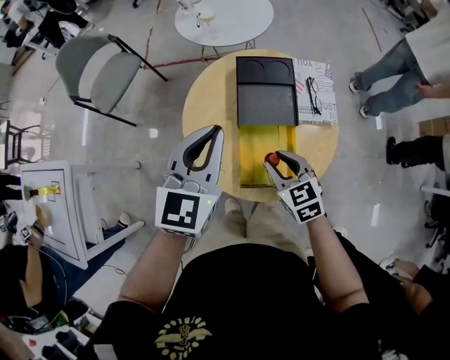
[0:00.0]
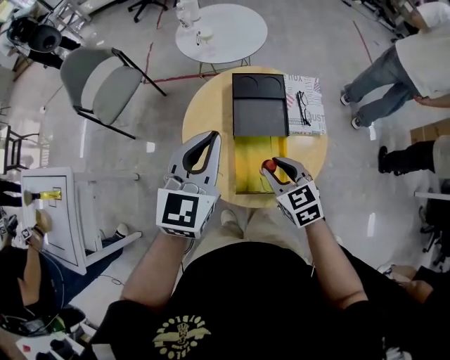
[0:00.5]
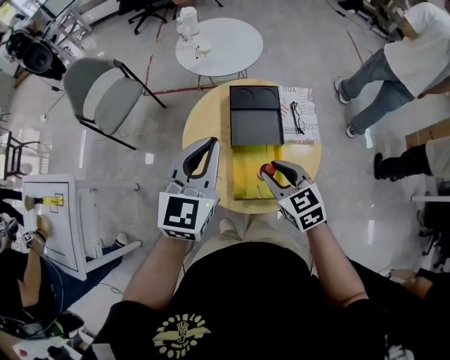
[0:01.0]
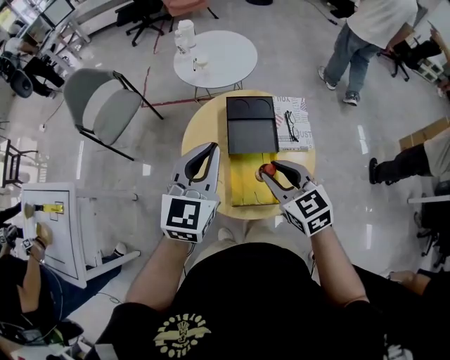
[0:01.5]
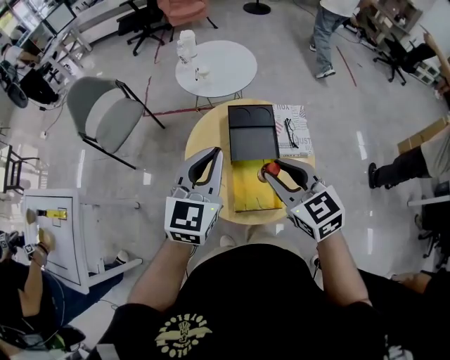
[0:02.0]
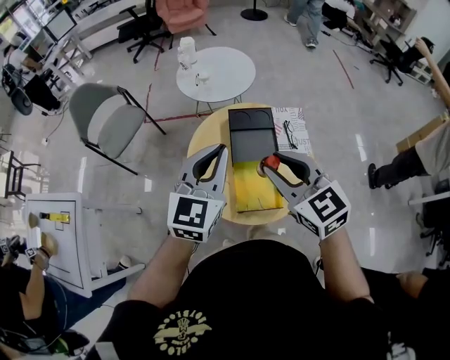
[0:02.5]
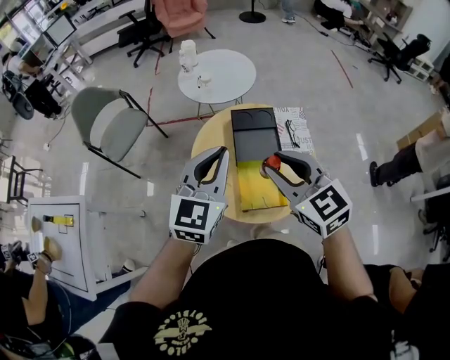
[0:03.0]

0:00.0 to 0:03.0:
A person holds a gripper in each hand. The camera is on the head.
0:00.0 to 0:01.5: The left gripper moves upward, approximately 10 cm. The right gripper moves upward, some 15 cm.
0:01.5 to 0:03.0: The right gripper goes some 10 cm upward.

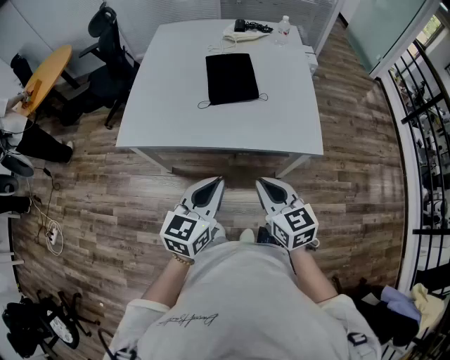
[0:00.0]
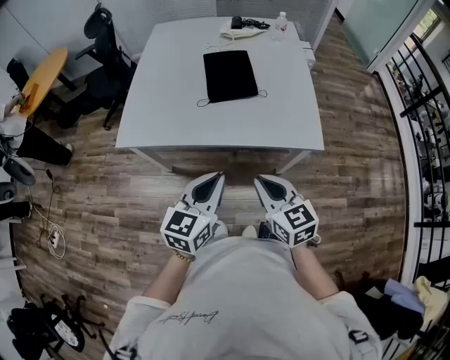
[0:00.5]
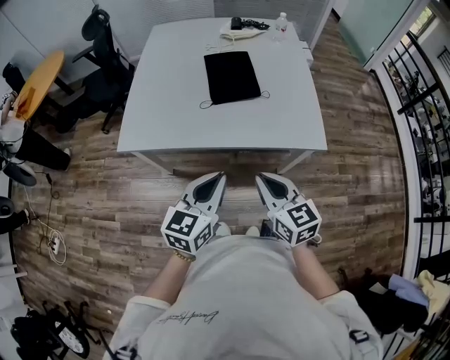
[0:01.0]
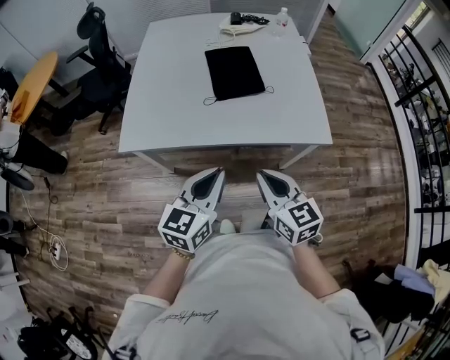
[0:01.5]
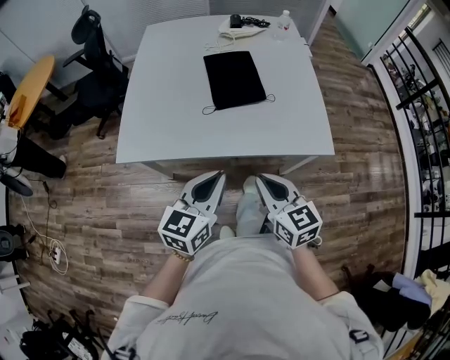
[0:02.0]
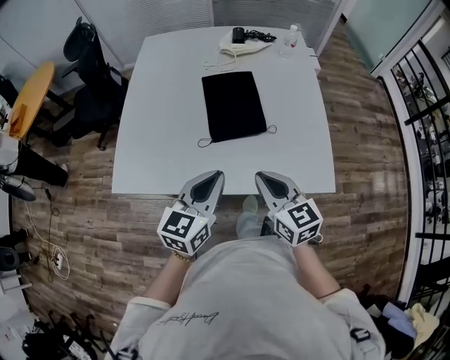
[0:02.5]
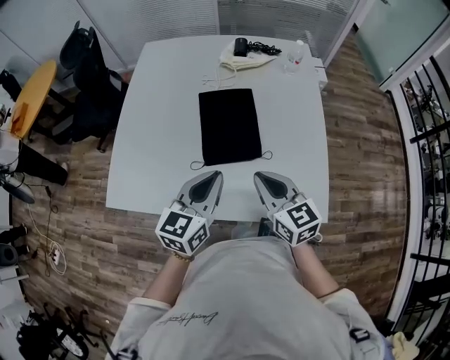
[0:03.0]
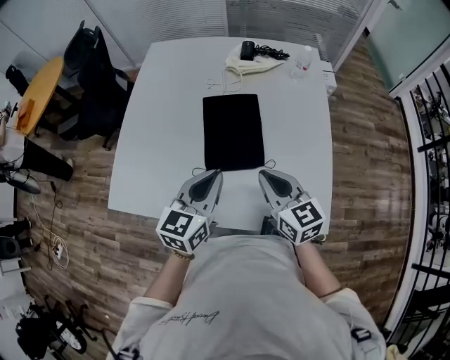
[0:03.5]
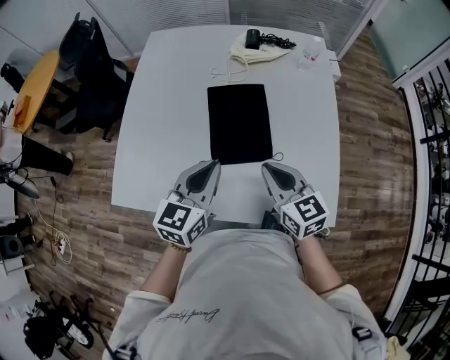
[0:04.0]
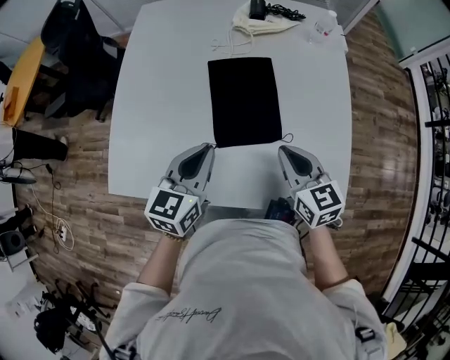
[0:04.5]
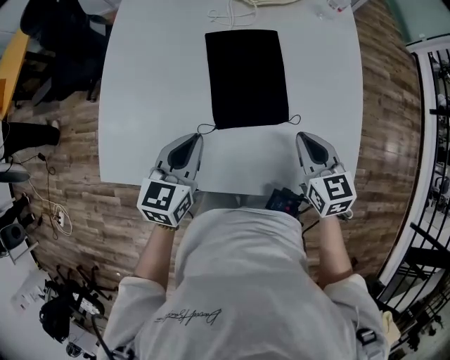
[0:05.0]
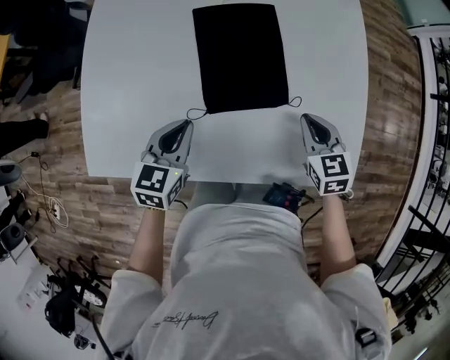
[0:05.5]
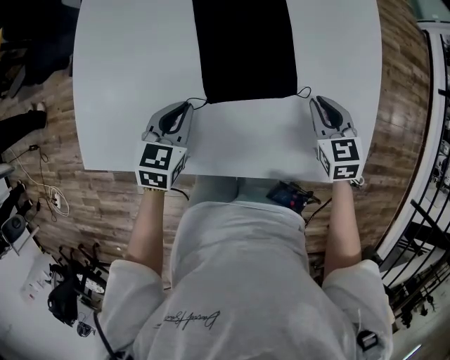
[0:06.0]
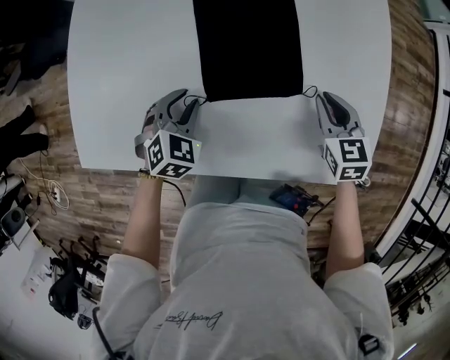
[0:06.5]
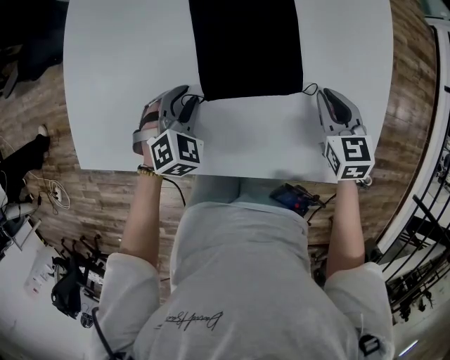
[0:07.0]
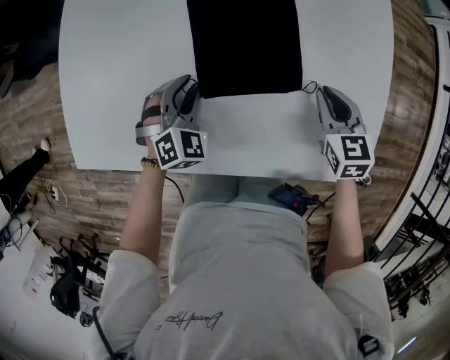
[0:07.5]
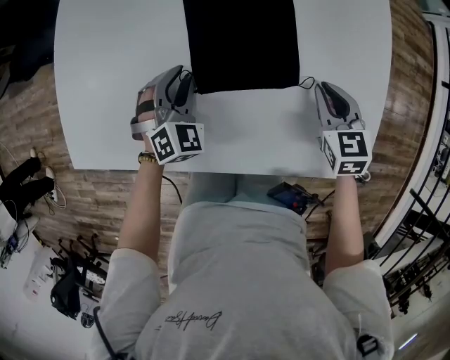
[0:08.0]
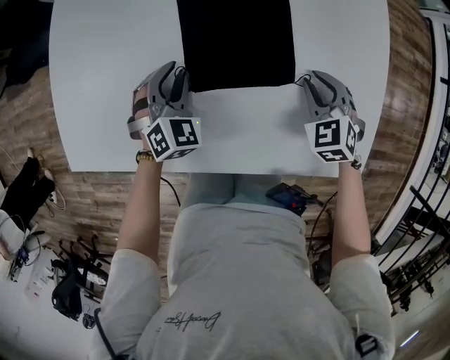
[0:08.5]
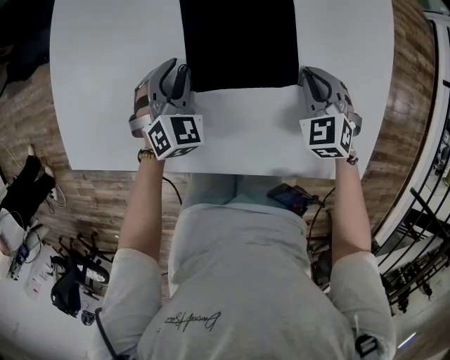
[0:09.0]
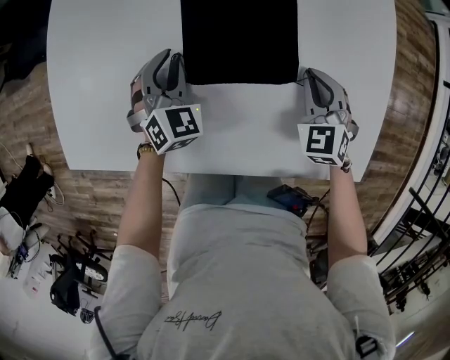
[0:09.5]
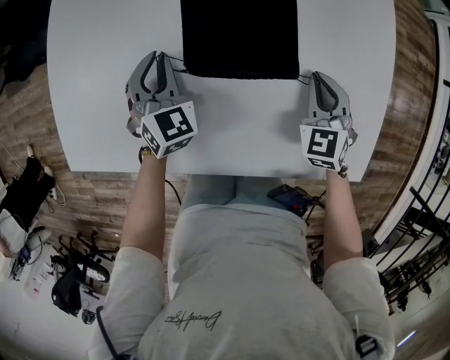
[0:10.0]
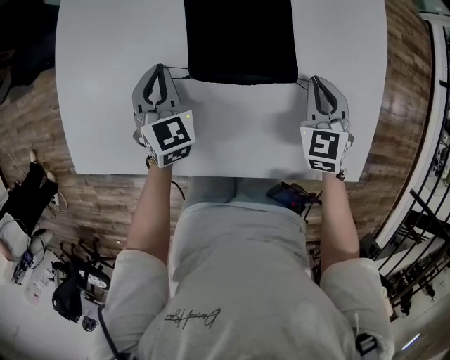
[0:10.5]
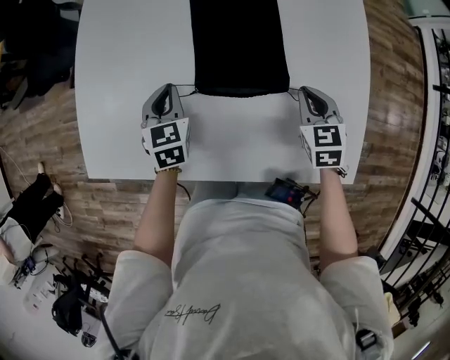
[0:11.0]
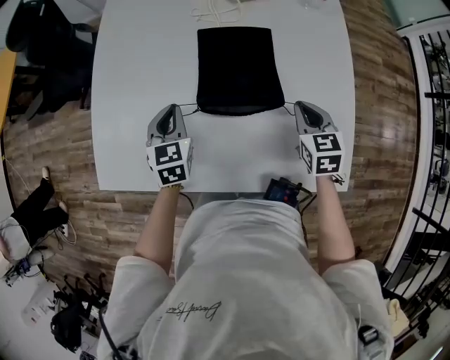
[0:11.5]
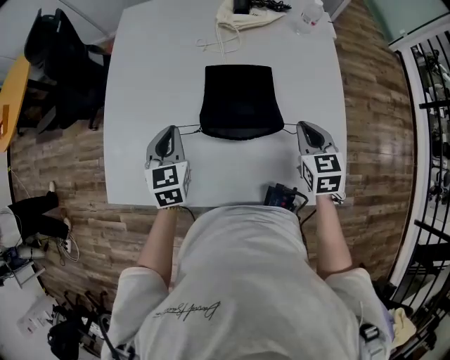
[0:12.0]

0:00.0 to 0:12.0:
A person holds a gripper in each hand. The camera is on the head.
0:00.0 to 0:02.0: The right gripper goes some 10 cm to the left and forward. Meanwhile the left gripper shifts some 10 cm forward and to the left.
0:02.0 to 0:04.0: The grippers both shift forward by some 30 cm.
0:04.0 to 0:06.0: The left gripper heads downward, covering about 20 cm, and turns by roughly 30 degrees; the right gripper moves downward and to the right, roughly 20 cm, and rotates approximately 30 degrees.
0:06.0 to 0:08.0: The left gripper moves approximately 5 cm, rolls clockwise, seen from behind, by approximately 40 degrees, and opens.
0:08.0 to 0:10.0: The right gripper turns by roughly 20 degrees; the left gripper moves approximately 5 cm, and turns by about 30 degrees.
0:10.0 to 0:12.0: The grippers both shift upward by some 15 cm. The right gripper rotates some 30 degrees; the left gripper changes its angle by some 30 degrees.

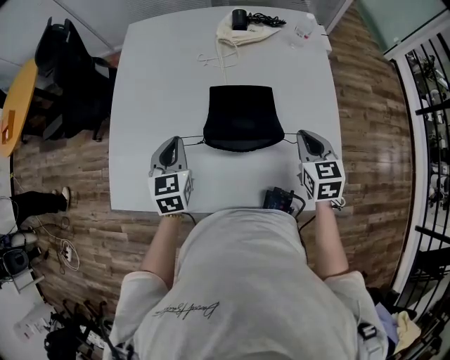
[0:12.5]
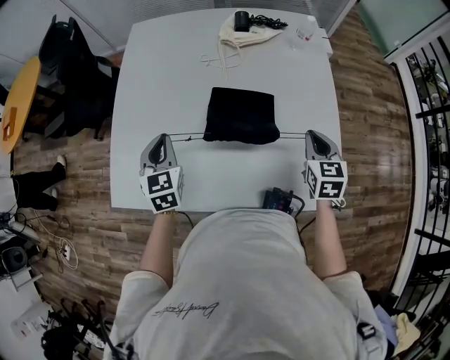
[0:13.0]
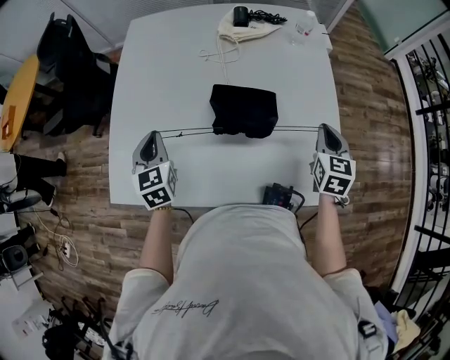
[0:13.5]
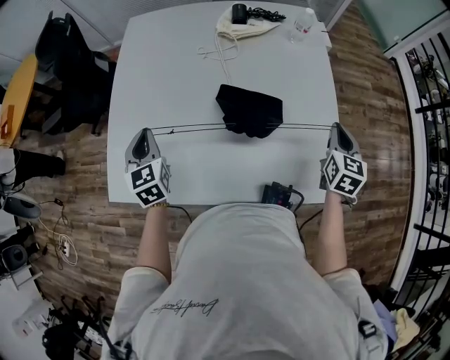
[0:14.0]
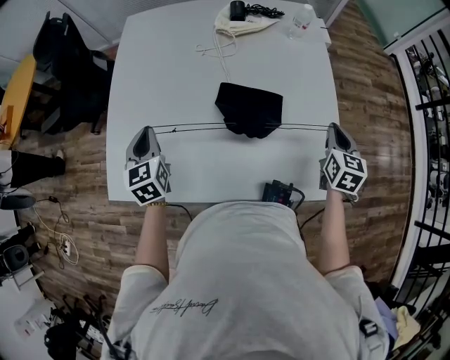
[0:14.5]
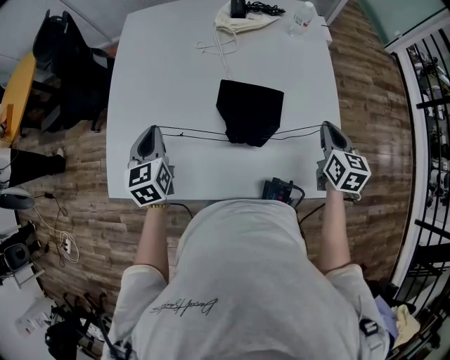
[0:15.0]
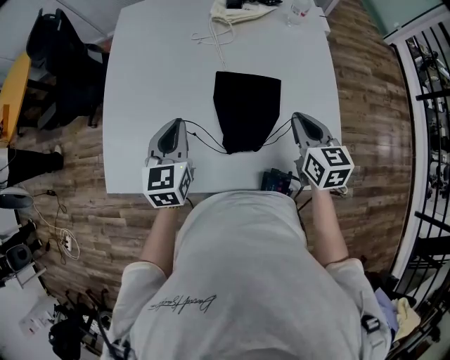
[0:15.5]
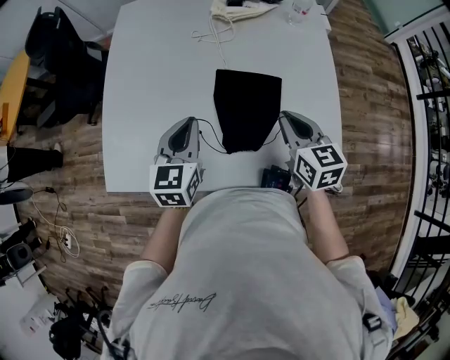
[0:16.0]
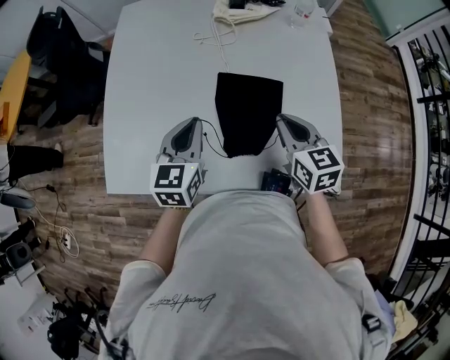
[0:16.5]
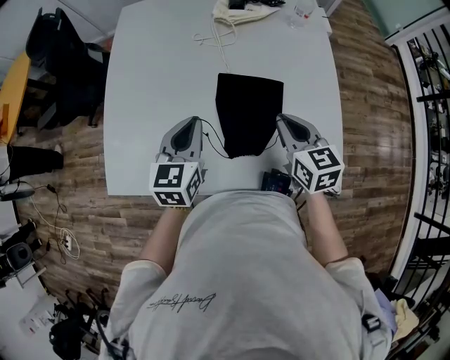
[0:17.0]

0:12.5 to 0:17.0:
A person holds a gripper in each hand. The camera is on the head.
0:12.5 to 0:14.5: The right gripper travels to the right by roughly 10 cm, and changes its angle by roughly 20 degrees. The left gripper shifts about 5 cm to the left.
0:14.5 to 0:17.0: The right gripper is displaced to the left by about 20 cm, and turns by roughly 30 degrees; the left gripper goes some 15 cm to the right, and turns by about 20 degrees.

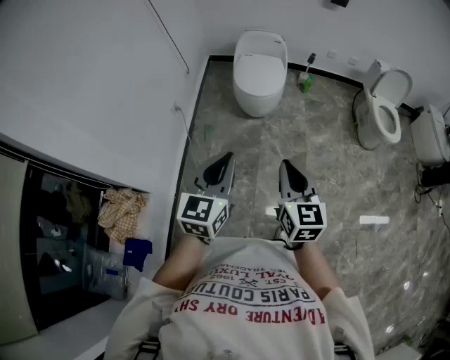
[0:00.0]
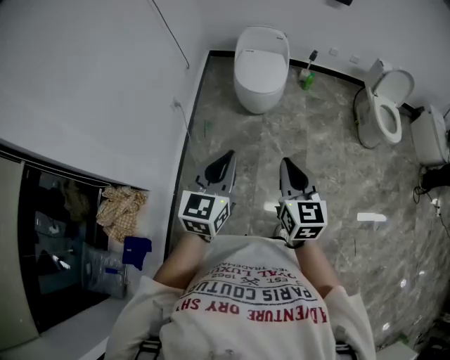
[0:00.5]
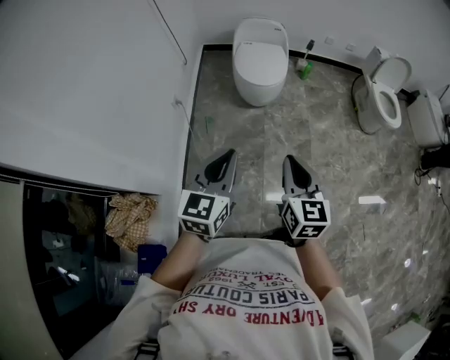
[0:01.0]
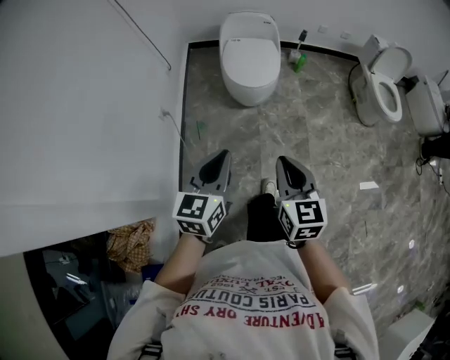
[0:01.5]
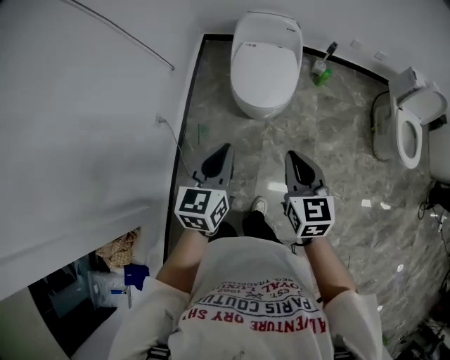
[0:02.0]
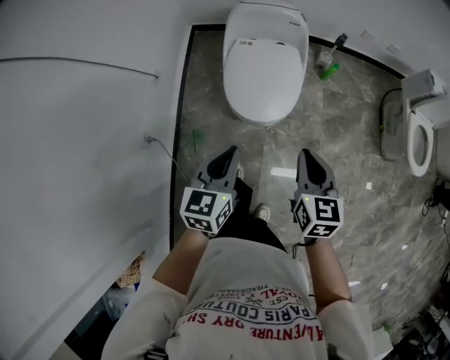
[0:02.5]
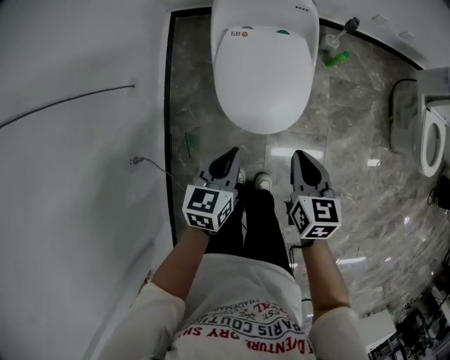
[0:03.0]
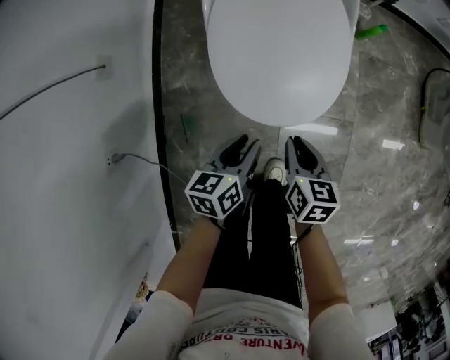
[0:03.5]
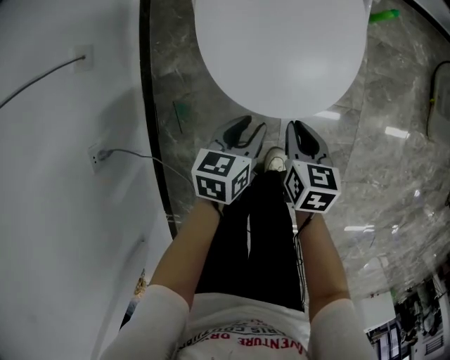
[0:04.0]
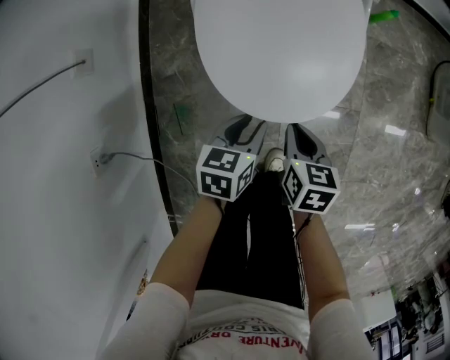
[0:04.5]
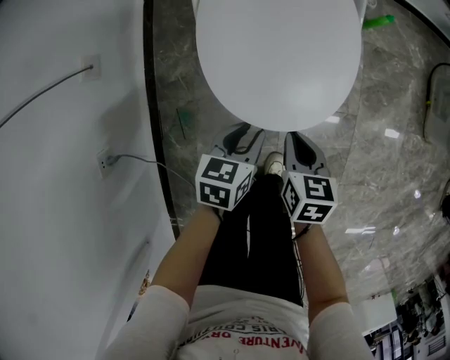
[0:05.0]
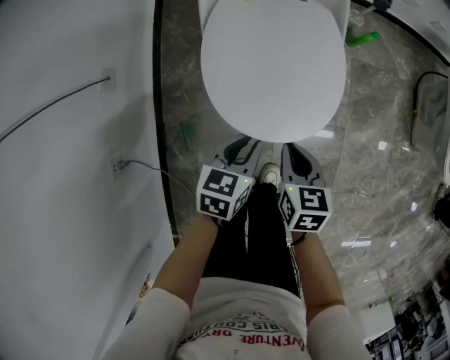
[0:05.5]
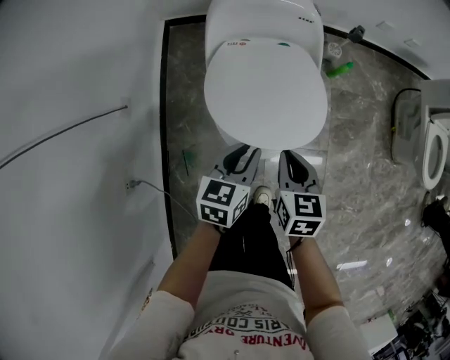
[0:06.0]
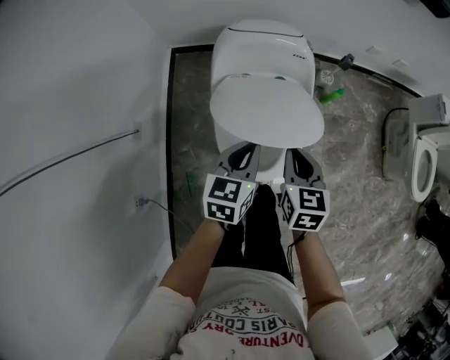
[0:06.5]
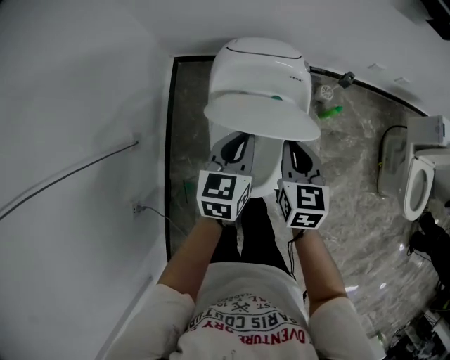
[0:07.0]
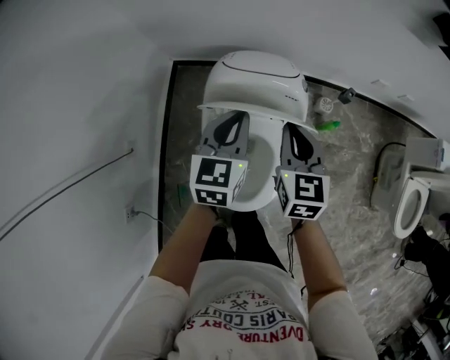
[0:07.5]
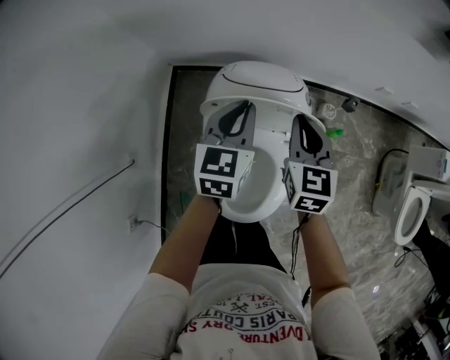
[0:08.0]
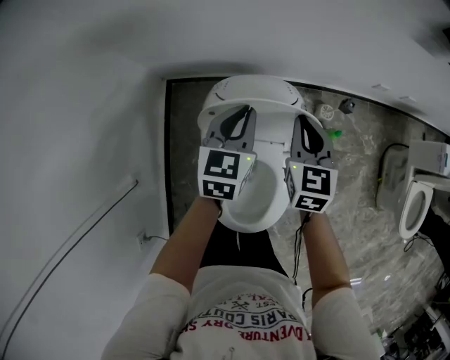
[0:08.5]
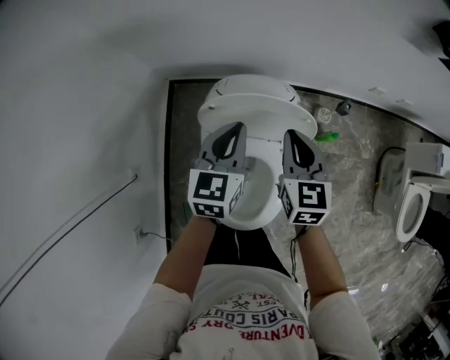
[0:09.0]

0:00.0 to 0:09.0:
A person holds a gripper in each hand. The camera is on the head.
0:00.0 to 0:02.0: The two grippers go approximately 40 cm forward.
0:02.0 to 0:04.5: The grippers both shift downward and forward by some 60 cm. The right gripper rotates about 40 degrees; the left gripper swivels about 40 degrees, and opens.
0:04.5 to 0:07.0: Both grippers move upward and forward, roughly 50 cm. The left gripper turns by about 30 degrees, and closes. Meanwhile the right gripper swivels about 30 degrees.
0:07.0 to 0:09.0: Both grippers move forward, roughly 20 cm.
